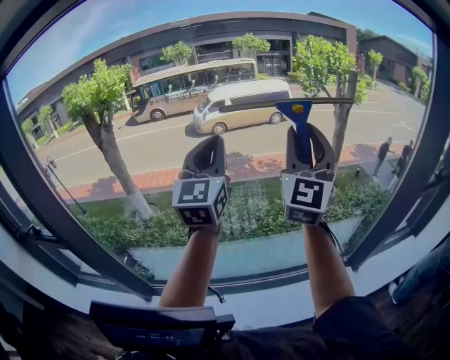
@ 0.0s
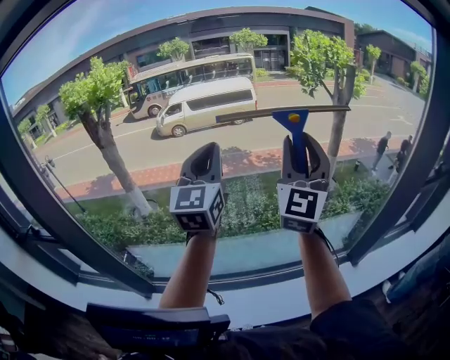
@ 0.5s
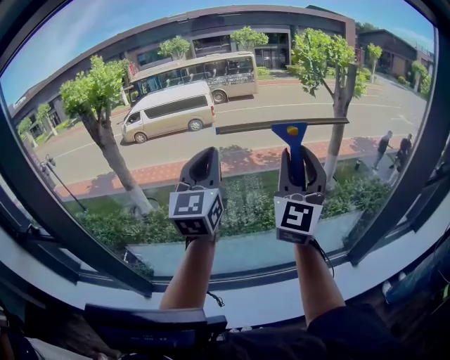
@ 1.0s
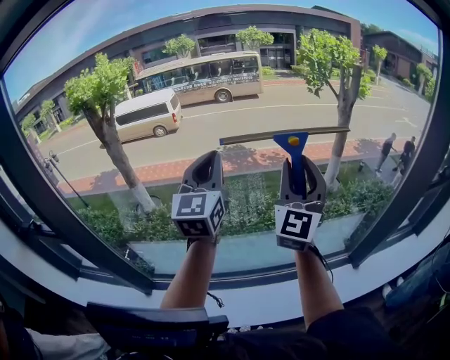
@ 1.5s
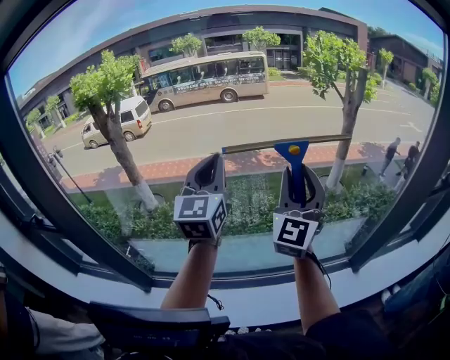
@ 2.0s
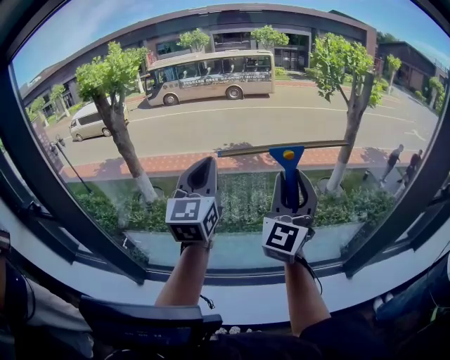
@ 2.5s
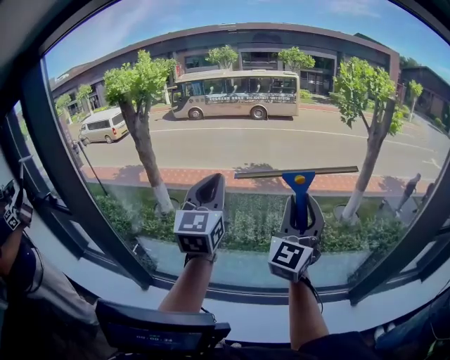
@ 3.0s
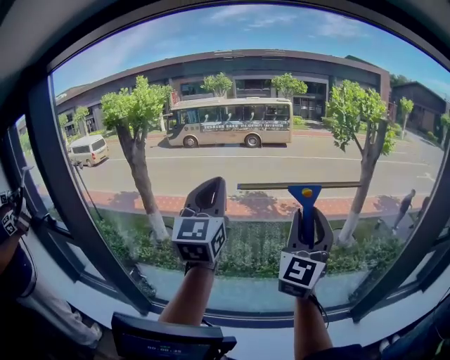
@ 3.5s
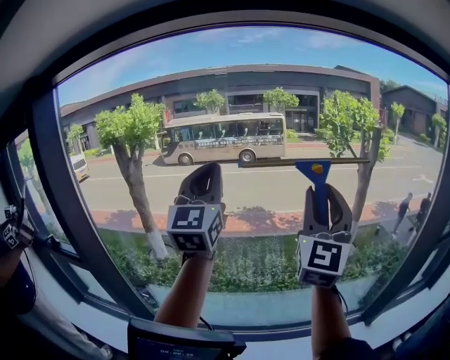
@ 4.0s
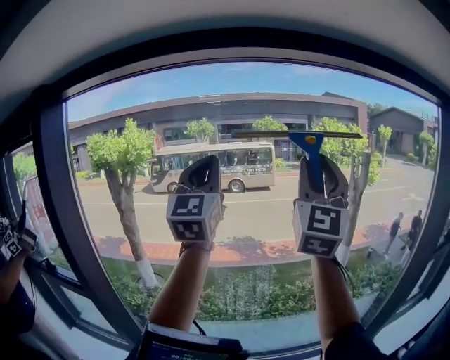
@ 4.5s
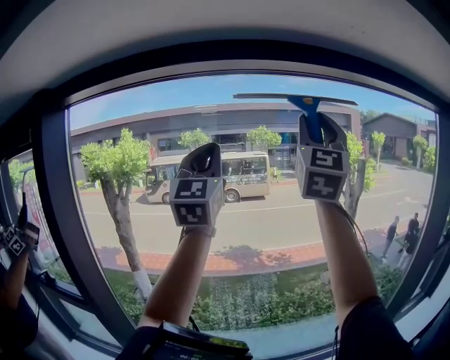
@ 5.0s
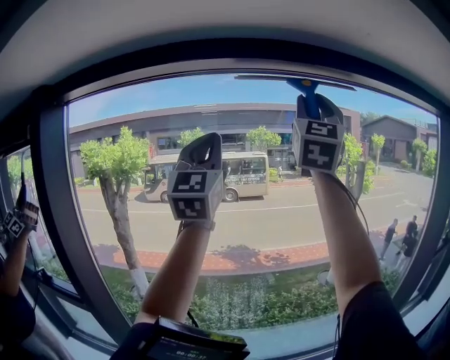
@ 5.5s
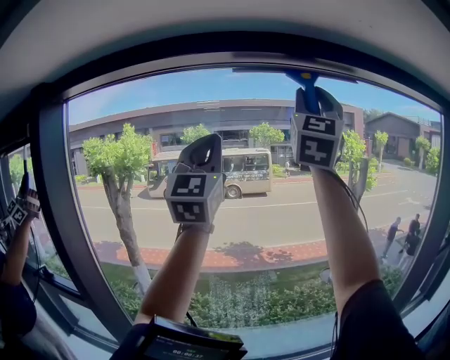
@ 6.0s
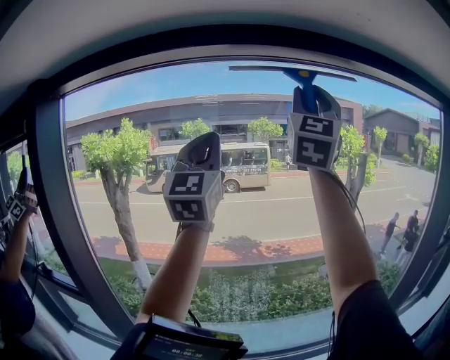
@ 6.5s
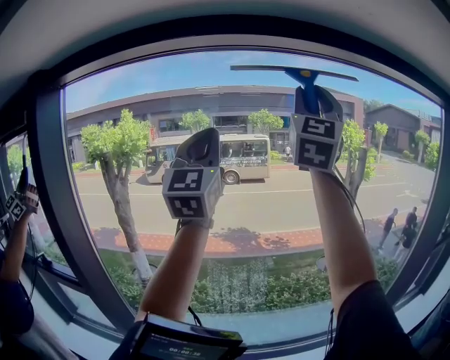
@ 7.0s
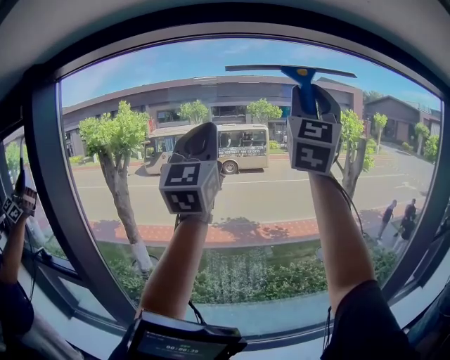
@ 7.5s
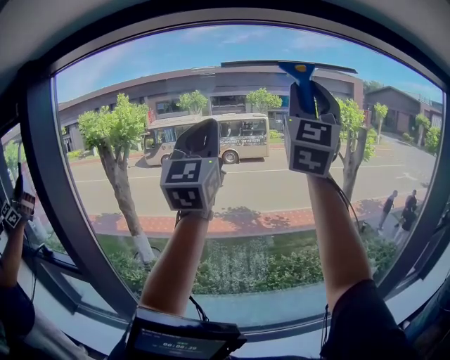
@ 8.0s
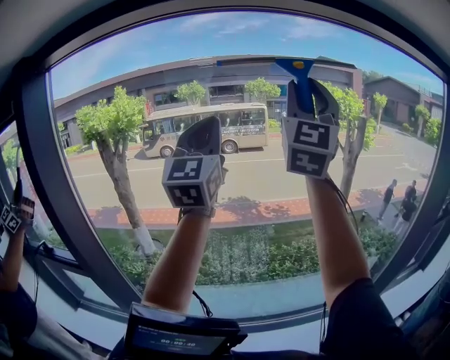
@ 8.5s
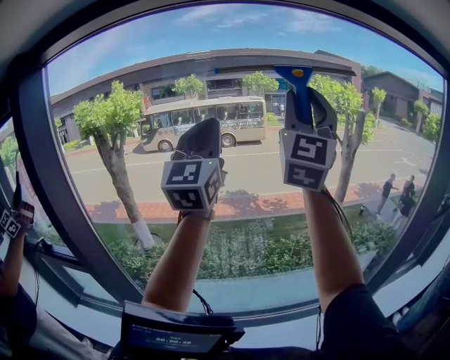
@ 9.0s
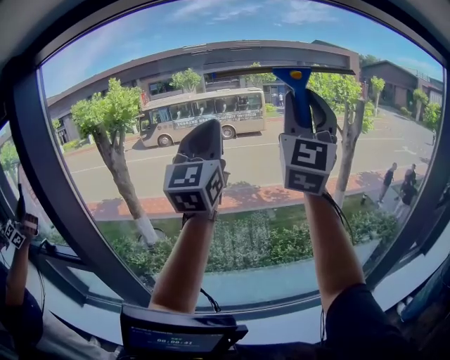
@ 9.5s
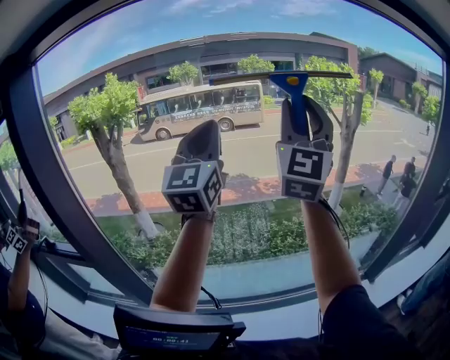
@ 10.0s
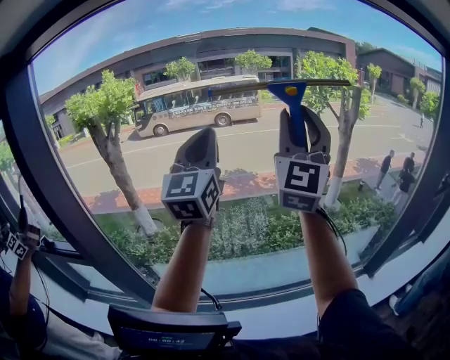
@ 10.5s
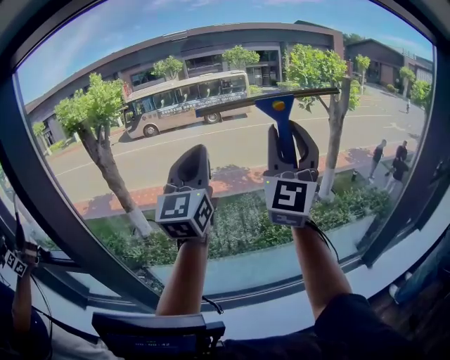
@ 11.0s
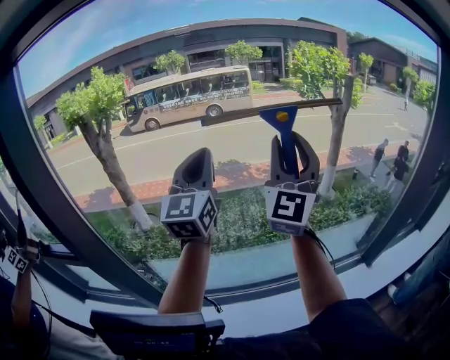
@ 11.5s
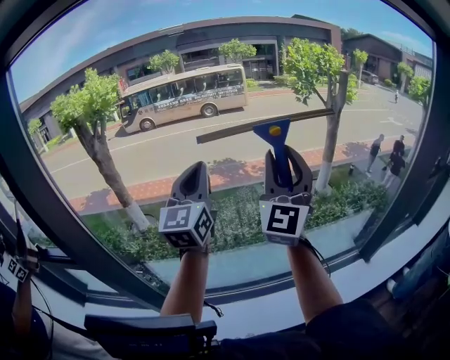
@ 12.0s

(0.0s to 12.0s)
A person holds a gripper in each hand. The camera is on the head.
0.0s - 2.0s: The left gripper travels downward by roughly 5 cm; the right gripper goes some 10 cm downward.
2.0s - 4.0s: The two grippers go approximately 20 cm upward and to the left.
4.0s - 6.0s: The right gripper travels upward and to the left by some 35 cm, while the left gripper travels upward and to the left by about 20 cm.
6.0s - 8.0s: The grippers both shift downward by about 10 cm.
8.0s - 10.0s: The grippers both shift downward by roughly 10 cm.
10.0s - 12.0s: Both grippers travel together downward, approximately 15 cm.

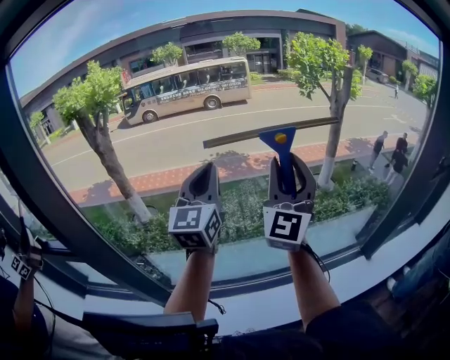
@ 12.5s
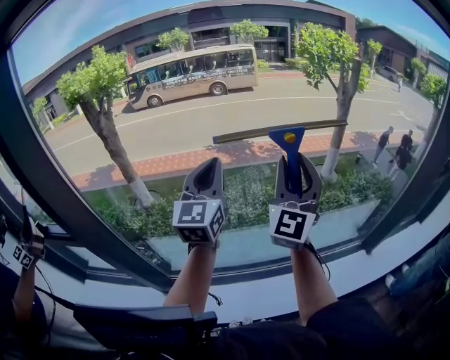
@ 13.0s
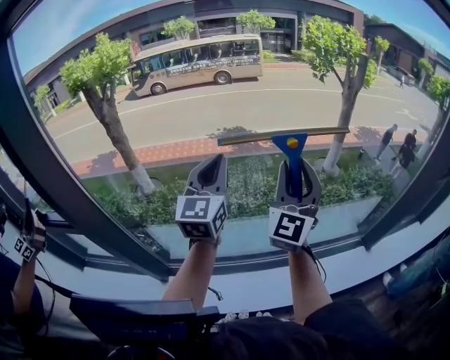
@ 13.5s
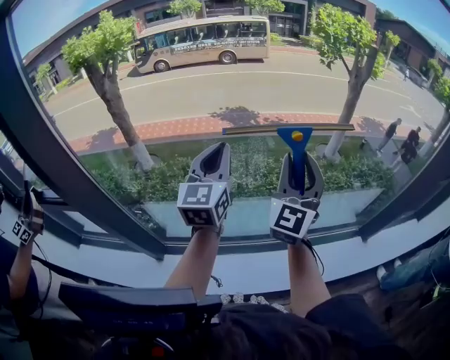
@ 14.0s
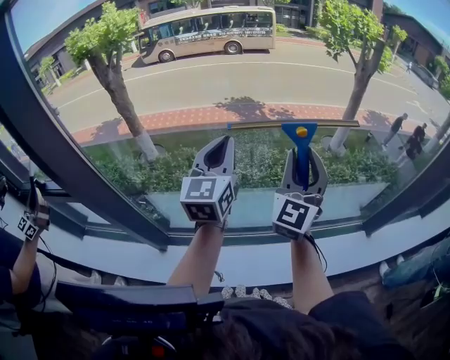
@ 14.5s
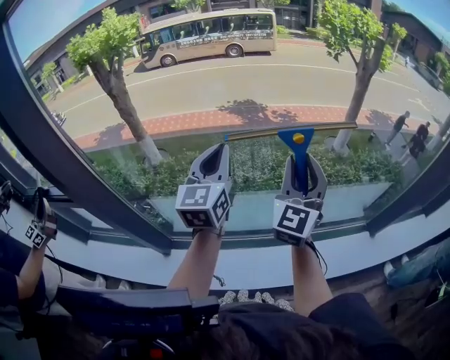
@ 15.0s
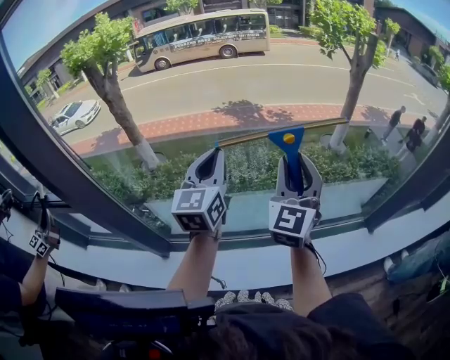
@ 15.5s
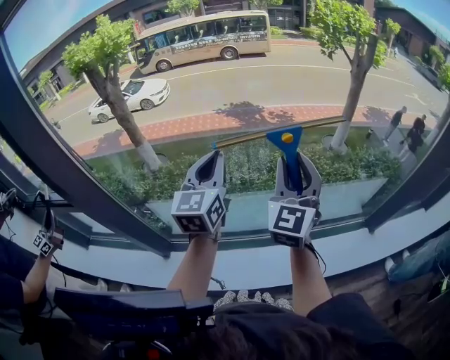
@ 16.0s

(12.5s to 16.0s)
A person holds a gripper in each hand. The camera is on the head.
12.5s - 14.5s: Both grippers move downward, about 10 cm.
14.5s - 16.0s: The grippers move only a little.

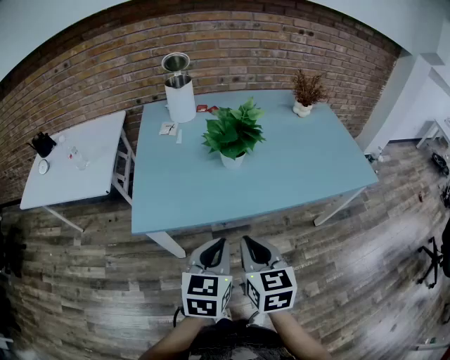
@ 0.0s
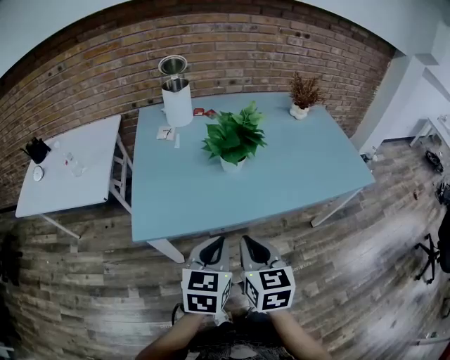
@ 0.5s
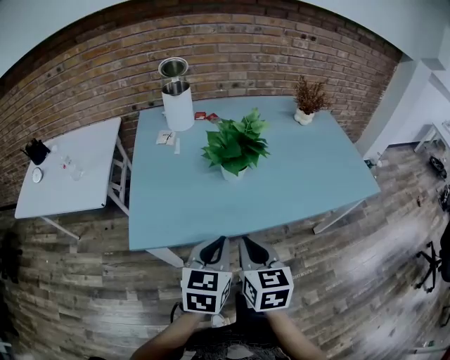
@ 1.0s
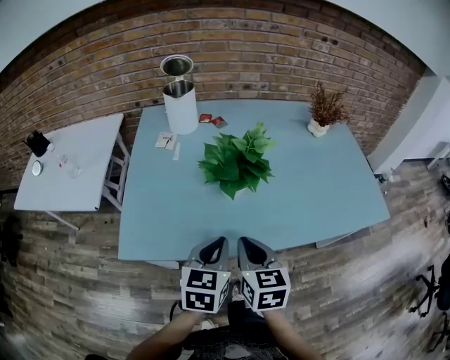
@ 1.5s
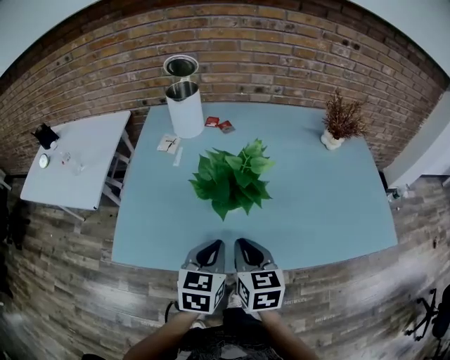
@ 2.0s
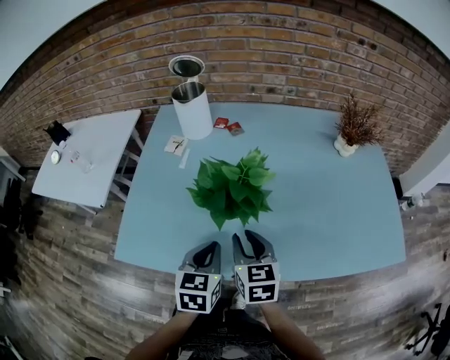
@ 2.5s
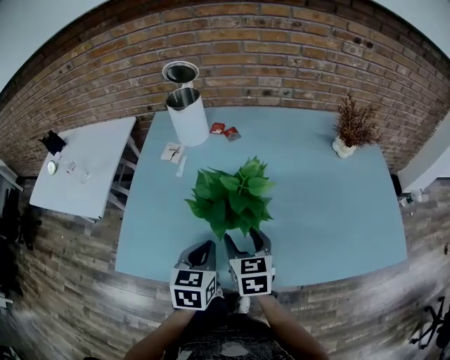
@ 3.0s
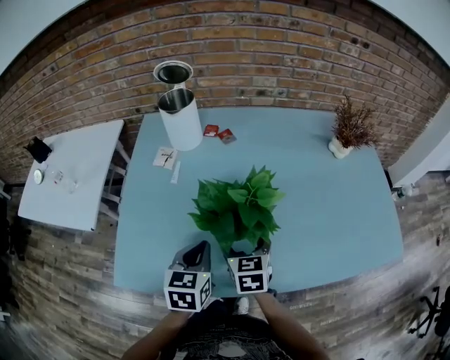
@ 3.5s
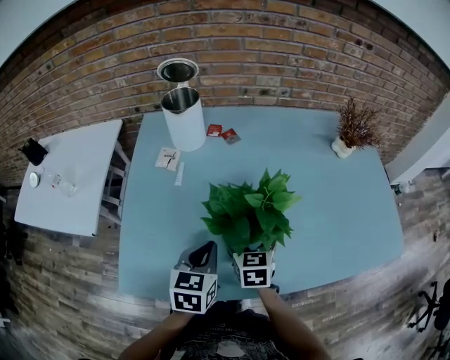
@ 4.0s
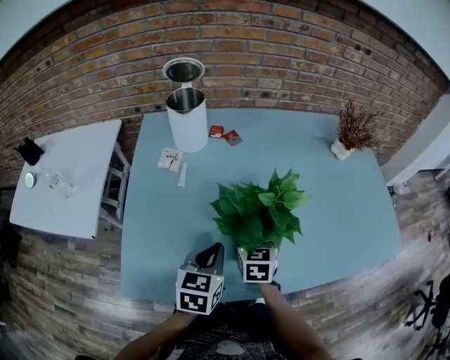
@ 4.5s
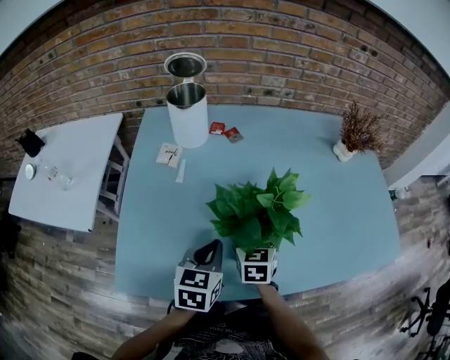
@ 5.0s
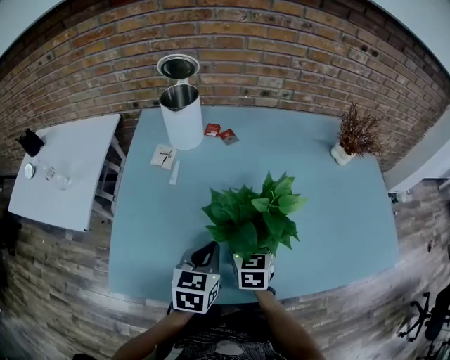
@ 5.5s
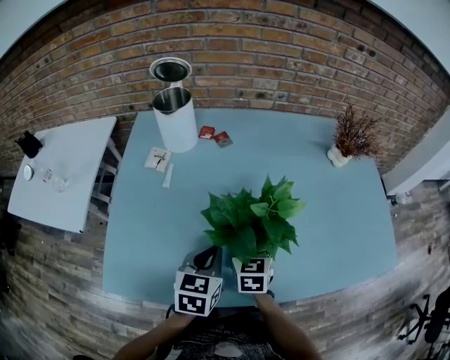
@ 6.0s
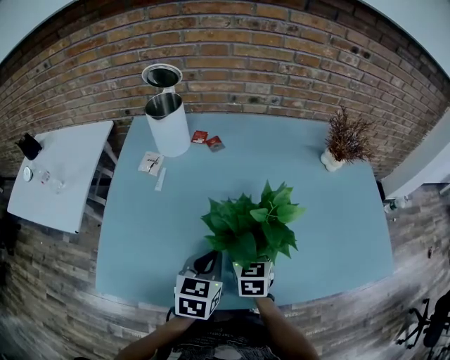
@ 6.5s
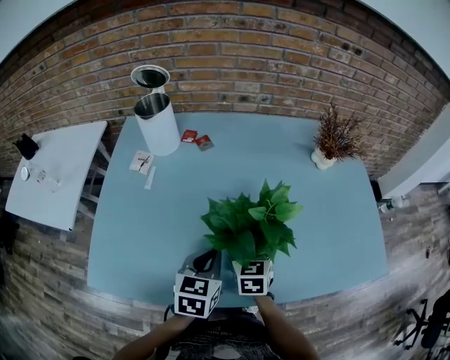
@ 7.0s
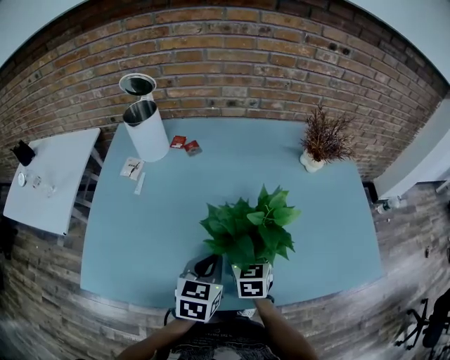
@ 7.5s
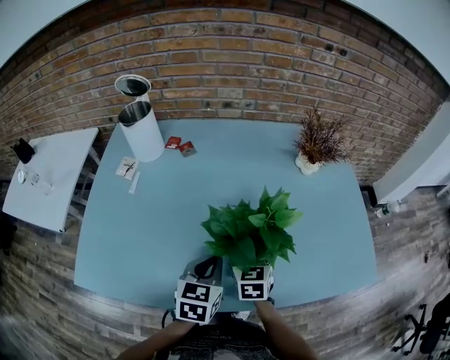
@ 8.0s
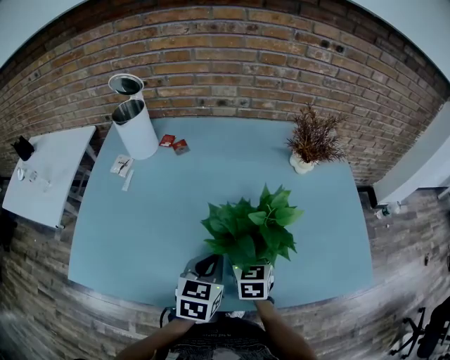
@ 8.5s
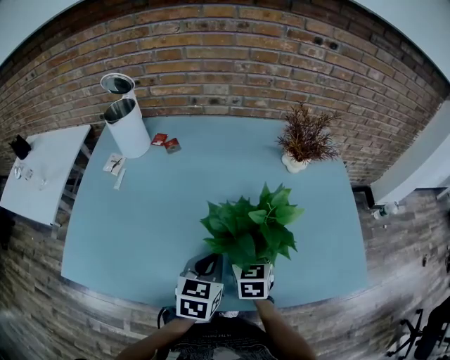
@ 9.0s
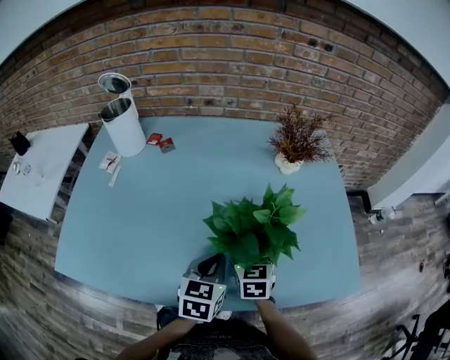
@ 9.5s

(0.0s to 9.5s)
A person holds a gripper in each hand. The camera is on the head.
0.0s - 2.0s: The two grippers go about 20 cm forward.
2.0s - 4.0s: The left gripper moves forward and to the left, about 10 cm, while the right gripper moves forward and downward, roughly 15 cm, and opens.
4.0s - 5.5s: The grippers move only a little.
5.5s - 7.5s: The grippers both shift to the right by some 15 cm.
7.5s - 9.5s: Both grippers travel together to the right, roughly 15 cm.

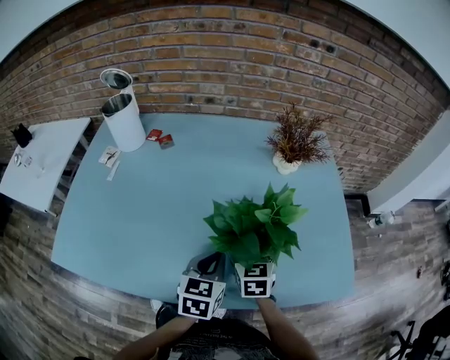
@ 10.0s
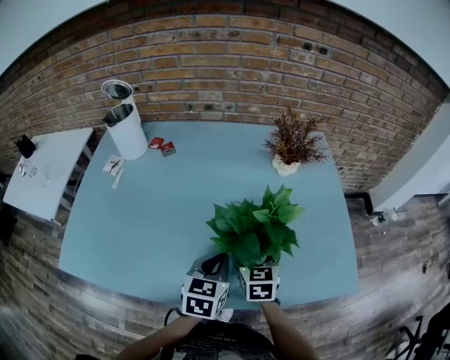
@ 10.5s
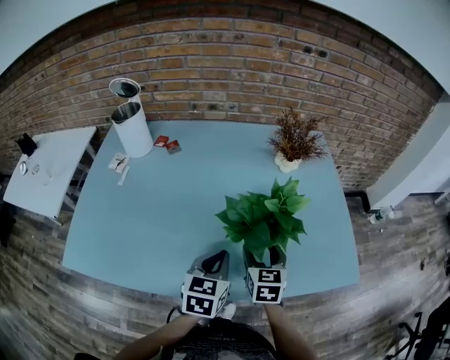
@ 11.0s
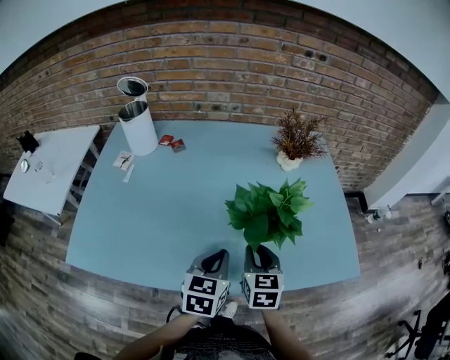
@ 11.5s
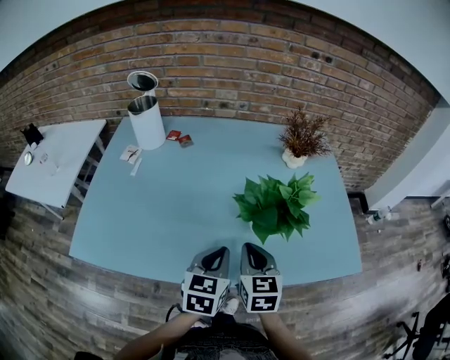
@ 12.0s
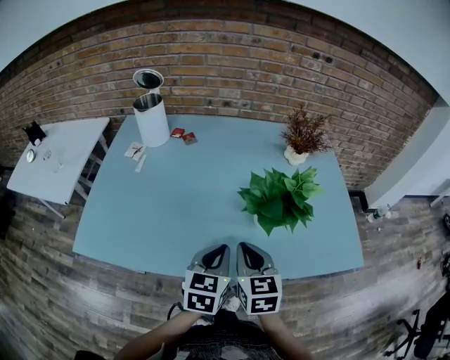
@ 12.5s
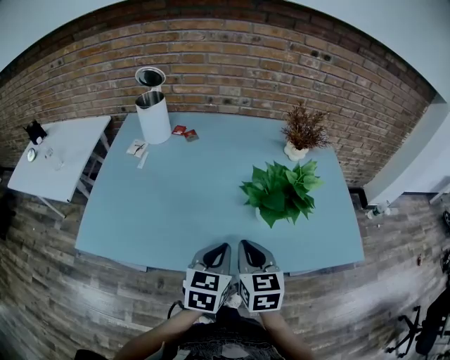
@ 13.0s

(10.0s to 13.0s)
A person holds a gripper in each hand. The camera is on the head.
10.0s - 11.5s: The left gripper moves backward, approximately 5 cm. The right gripper is displaced backward and upward by some 10 cm, and closes up.
11.5s - 13.0s: The left gripper heads backward, covering about 5 cm. The right gripper moves backward and to the left, approximately 10 cm.
